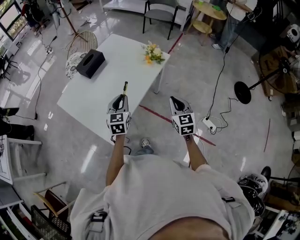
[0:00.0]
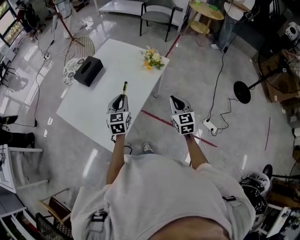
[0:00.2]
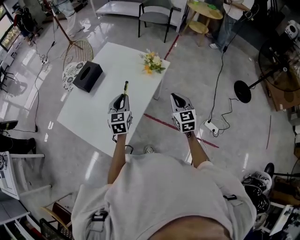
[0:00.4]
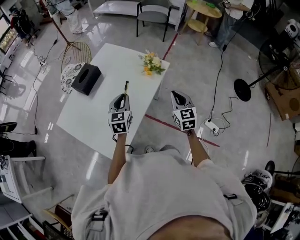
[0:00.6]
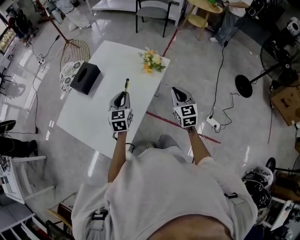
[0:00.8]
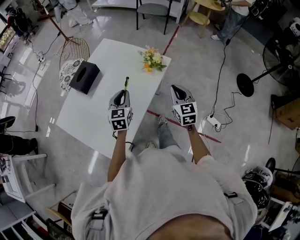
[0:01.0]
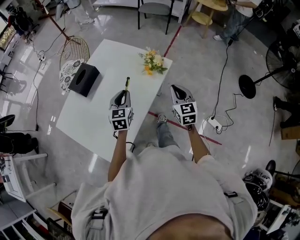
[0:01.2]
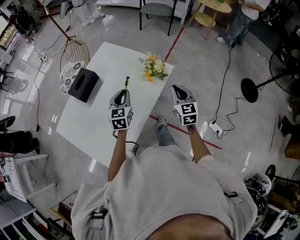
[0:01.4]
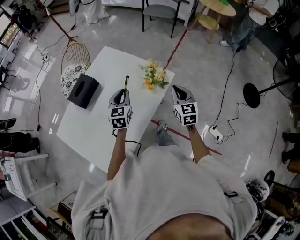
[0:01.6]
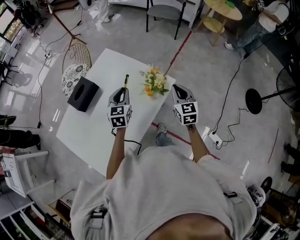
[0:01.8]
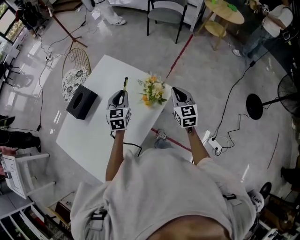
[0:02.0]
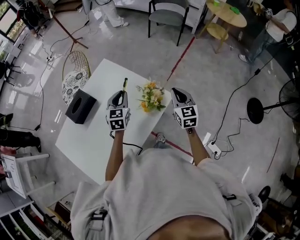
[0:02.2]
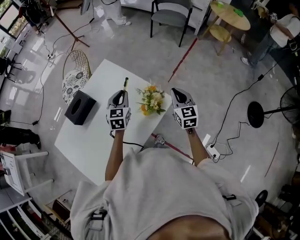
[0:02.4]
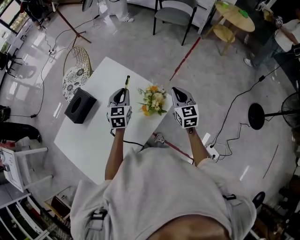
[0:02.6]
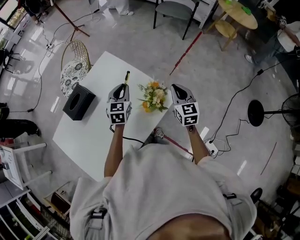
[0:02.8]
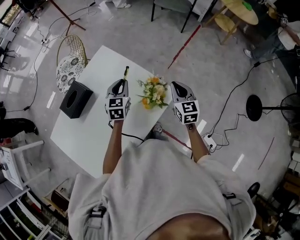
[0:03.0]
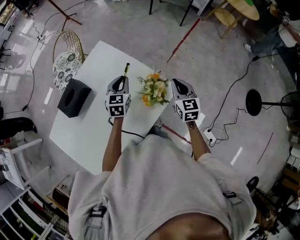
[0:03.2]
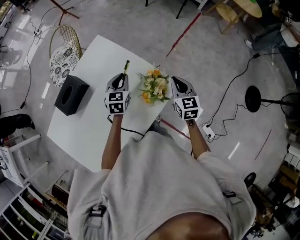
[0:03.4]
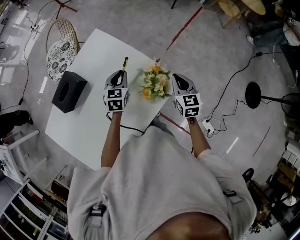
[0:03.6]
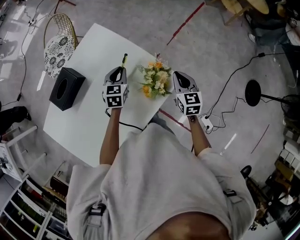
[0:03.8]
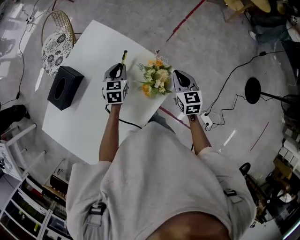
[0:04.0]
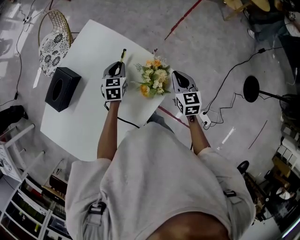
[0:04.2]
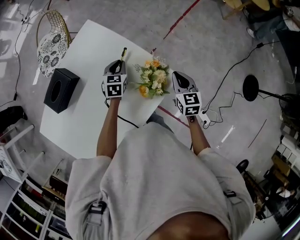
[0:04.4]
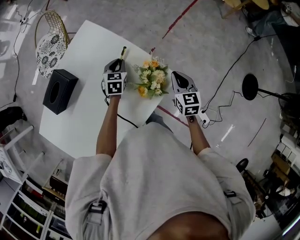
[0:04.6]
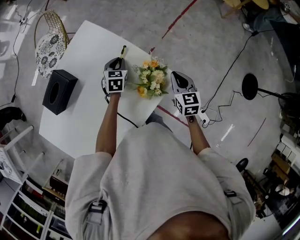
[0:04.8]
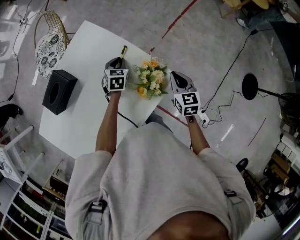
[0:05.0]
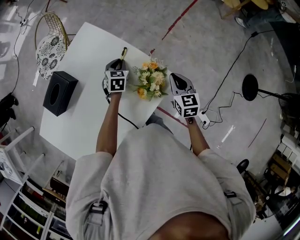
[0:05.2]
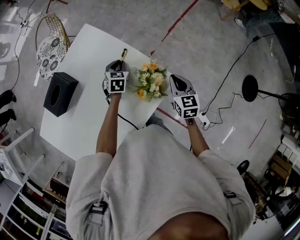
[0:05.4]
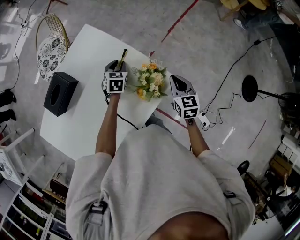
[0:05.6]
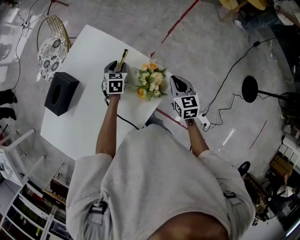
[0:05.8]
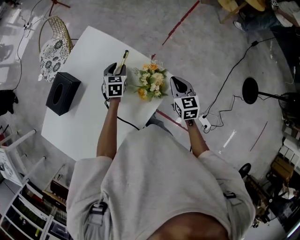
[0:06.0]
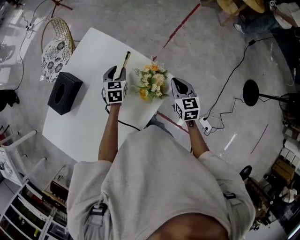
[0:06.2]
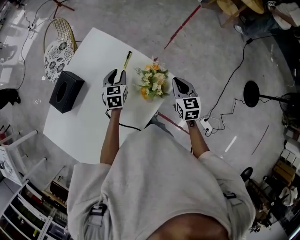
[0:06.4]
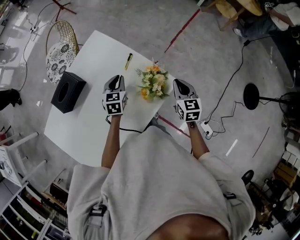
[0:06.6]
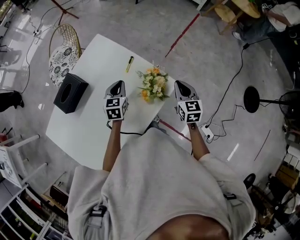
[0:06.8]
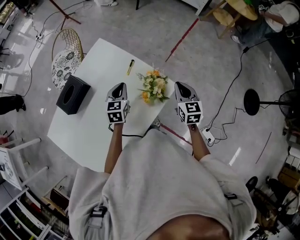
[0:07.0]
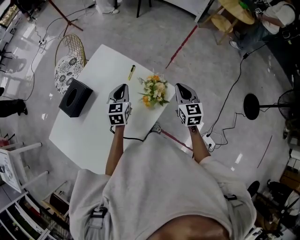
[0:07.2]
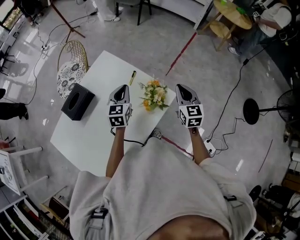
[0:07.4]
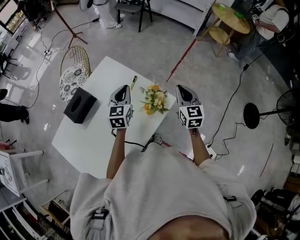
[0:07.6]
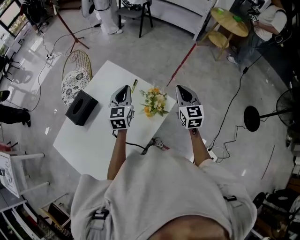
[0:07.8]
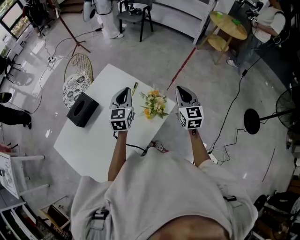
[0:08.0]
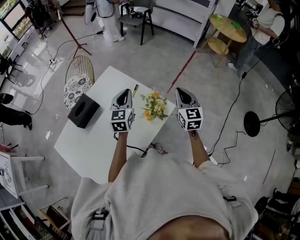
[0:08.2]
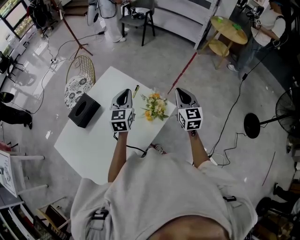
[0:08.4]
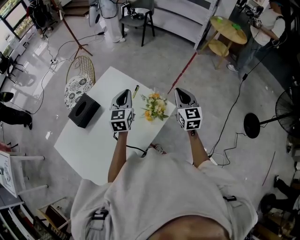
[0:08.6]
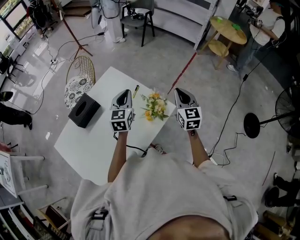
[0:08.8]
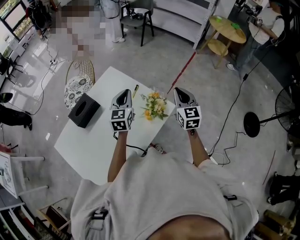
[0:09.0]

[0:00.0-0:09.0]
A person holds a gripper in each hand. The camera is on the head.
0:00.0 to 0:01.6: Both grippers move forward, roughly 25 cm.
0:01.6 to 0:03.0: The two grippers go roughly 15 cm forward.
0:03.0 to 0:04.4: The left gripper moves downward, about 15 cm, while the right gripper is displaced downward by some 10 cm.
0:04.4 to 0:06.0: There are only small adjustments of the grippers.
0:06.0 to 0:07.6: The right gripper travels upward by some 15 cm. Meanwhile the left gripper heads upward, covering approximately 20 cm, changes its angle by about 30 degrees, and closes up.
0:07.6 to 0:09.0: The grippers make only small movements.

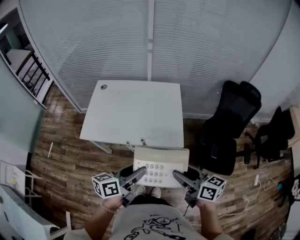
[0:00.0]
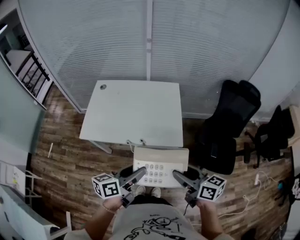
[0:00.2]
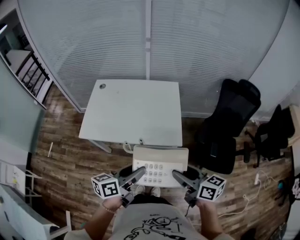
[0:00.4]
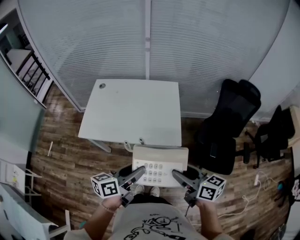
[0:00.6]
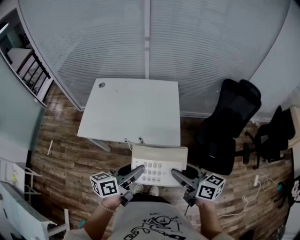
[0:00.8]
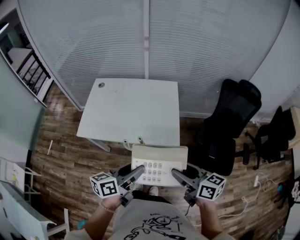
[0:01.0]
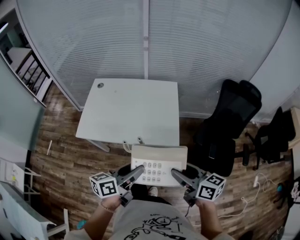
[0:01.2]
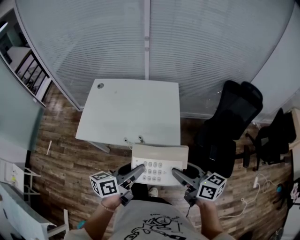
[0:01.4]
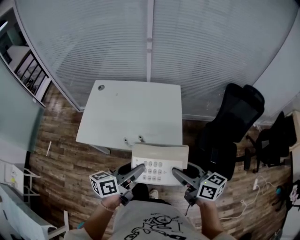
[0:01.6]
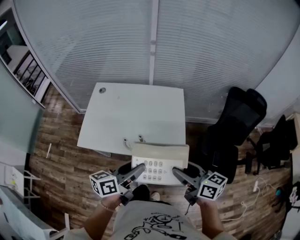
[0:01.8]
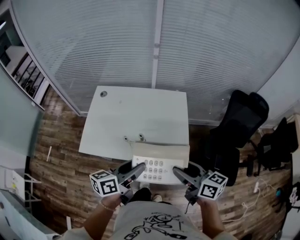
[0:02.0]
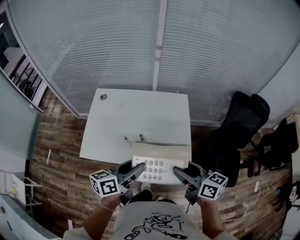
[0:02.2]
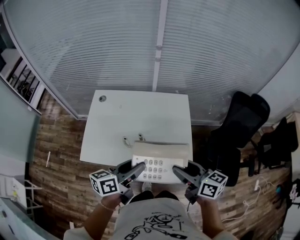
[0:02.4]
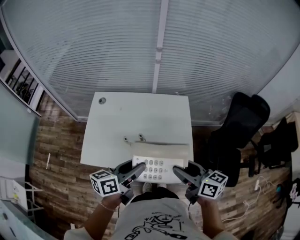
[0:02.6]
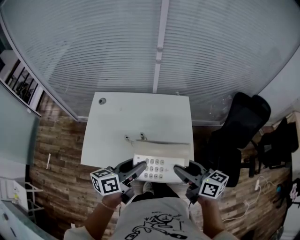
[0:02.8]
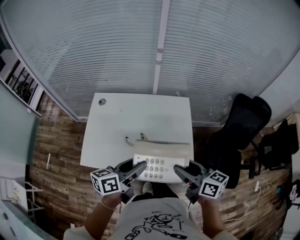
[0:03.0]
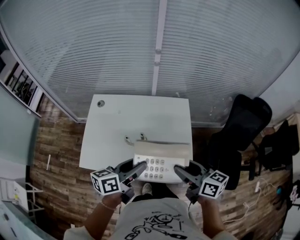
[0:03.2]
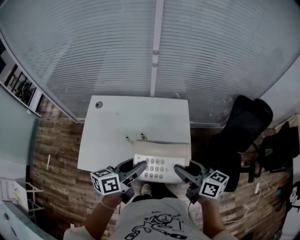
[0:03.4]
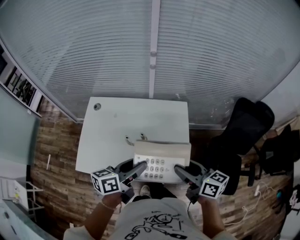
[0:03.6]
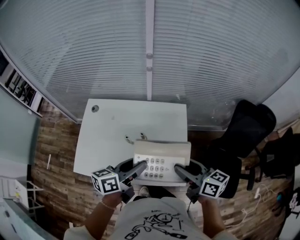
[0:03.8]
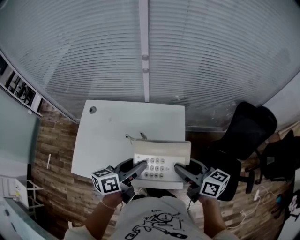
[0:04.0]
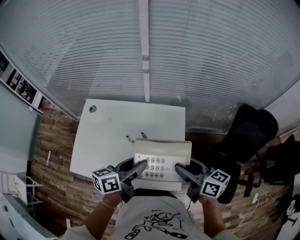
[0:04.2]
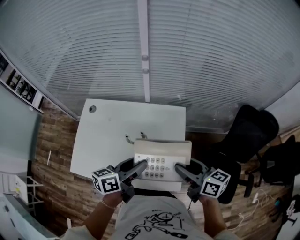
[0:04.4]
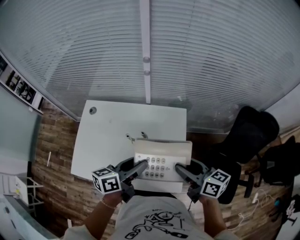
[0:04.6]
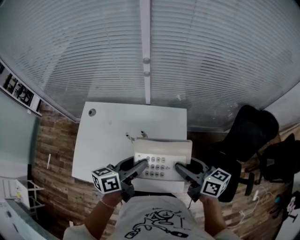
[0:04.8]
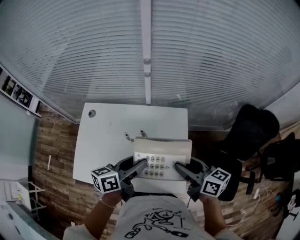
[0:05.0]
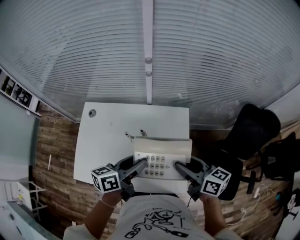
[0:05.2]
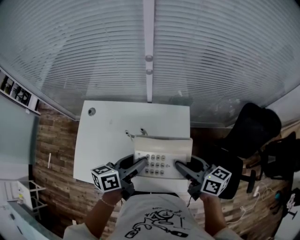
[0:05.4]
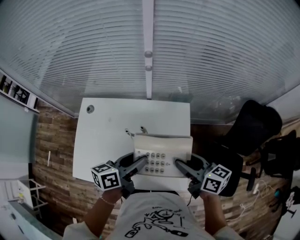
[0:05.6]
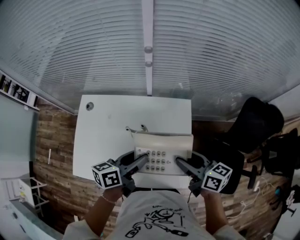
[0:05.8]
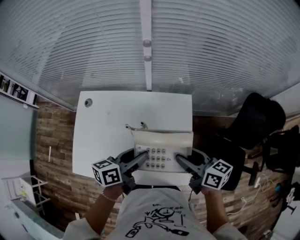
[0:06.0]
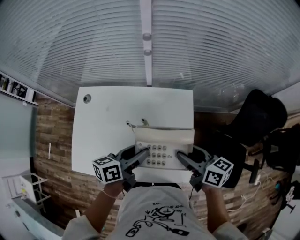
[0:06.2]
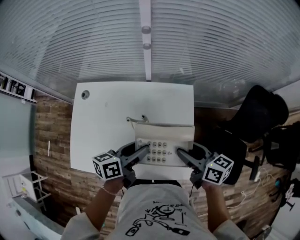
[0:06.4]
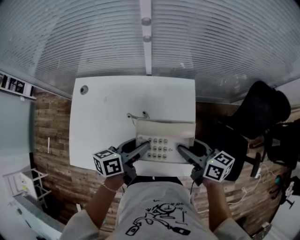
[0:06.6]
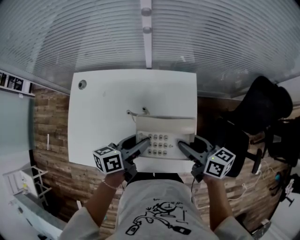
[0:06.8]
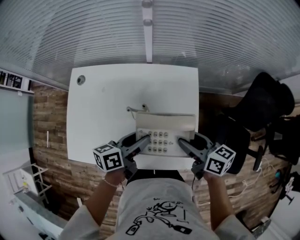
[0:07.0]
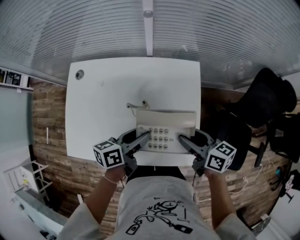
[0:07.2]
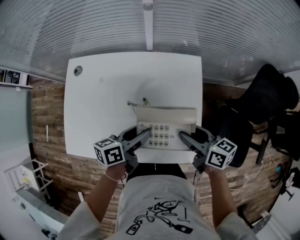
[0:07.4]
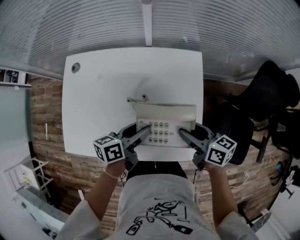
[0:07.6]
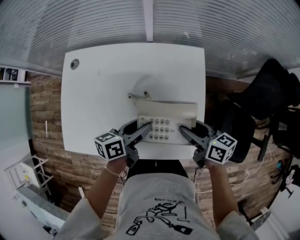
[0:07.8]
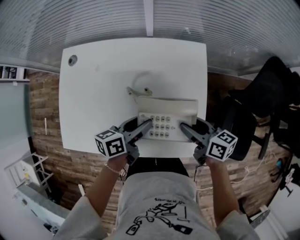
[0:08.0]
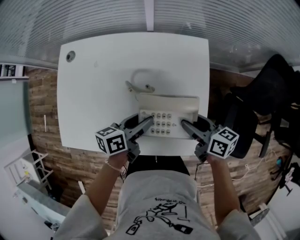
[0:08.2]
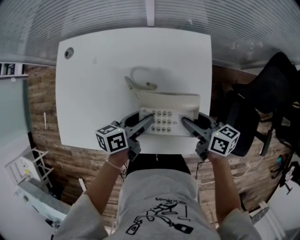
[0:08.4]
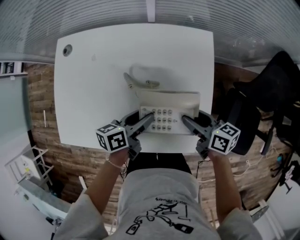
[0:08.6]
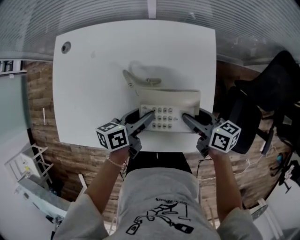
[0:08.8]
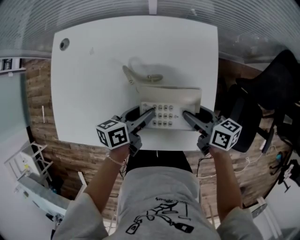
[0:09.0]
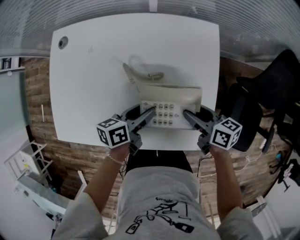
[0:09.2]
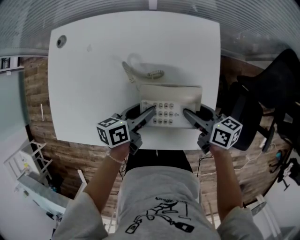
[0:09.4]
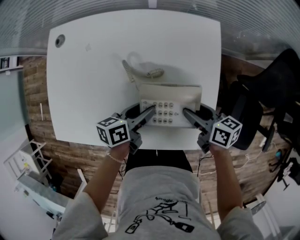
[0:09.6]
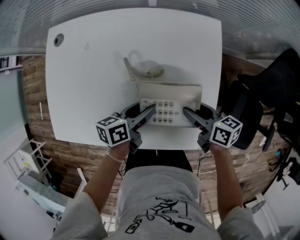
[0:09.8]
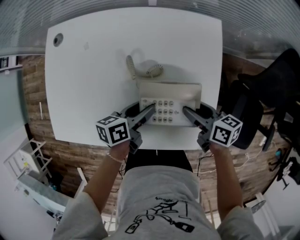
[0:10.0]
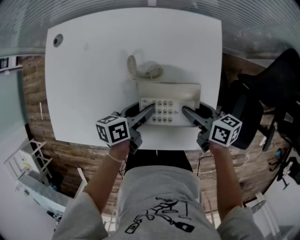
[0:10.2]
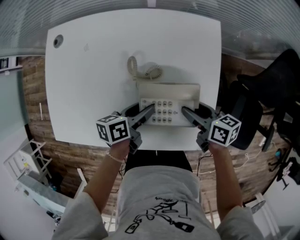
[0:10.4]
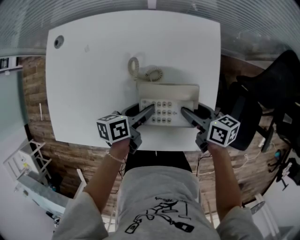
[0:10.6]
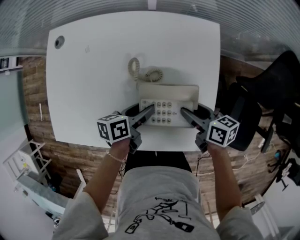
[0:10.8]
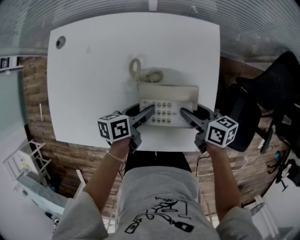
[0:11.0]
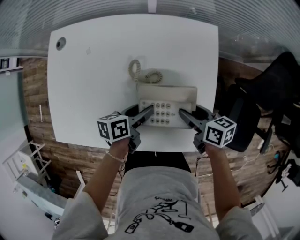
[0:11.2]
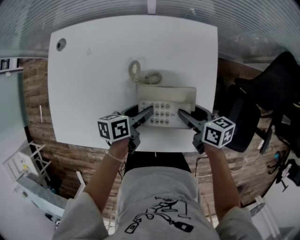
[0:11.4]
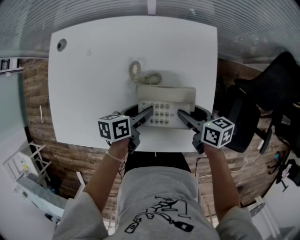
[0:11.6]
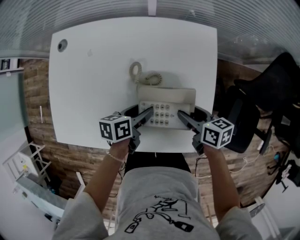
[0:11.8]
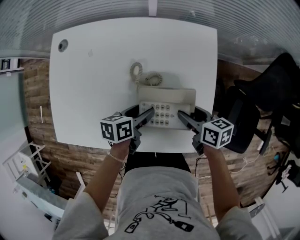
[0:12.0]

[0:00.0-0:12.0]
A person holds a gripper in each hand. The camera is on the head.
0:00.0 to 0:01.6: Both grippers move forward, some 5 cm.
0:01.6 to 0:03.0: Both grippers move forward and to the left, about 15 cm.
0:03.0 to 0:04.4: The two grippers go approximately 15 cm forward and to the right.
0:04.4 to 0:06.0: The right gripper shifts by about 5 cm; the left gripper shifts approximately 5 cm forward.
0:06.0 to 0:07.6: The grippers both shift downward by approximately 10 cm.
0:07.6 to 0:09.0: The grippers both shift downward by roughly 10 cm.
0:09.0 to 0:12.0: The grippers move only a little.

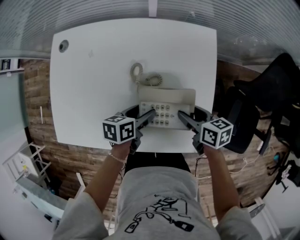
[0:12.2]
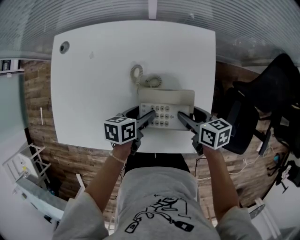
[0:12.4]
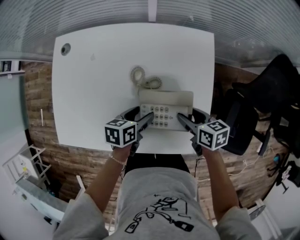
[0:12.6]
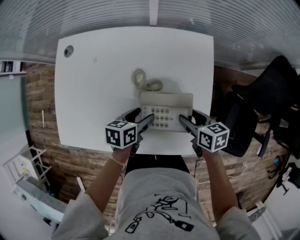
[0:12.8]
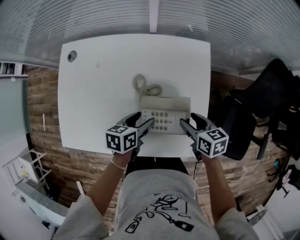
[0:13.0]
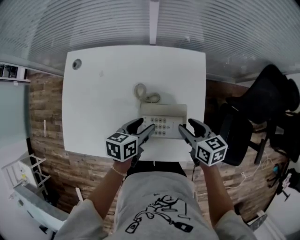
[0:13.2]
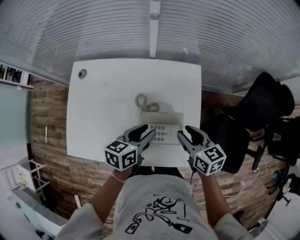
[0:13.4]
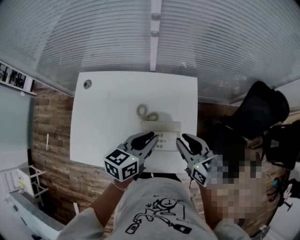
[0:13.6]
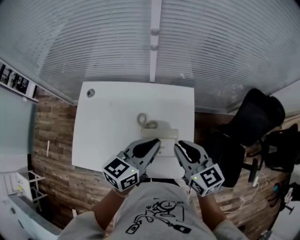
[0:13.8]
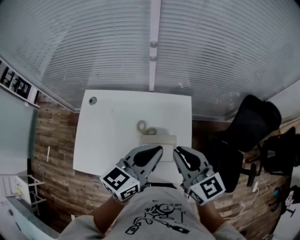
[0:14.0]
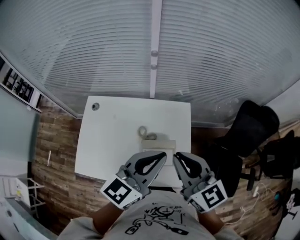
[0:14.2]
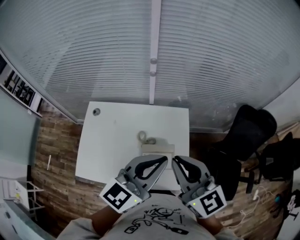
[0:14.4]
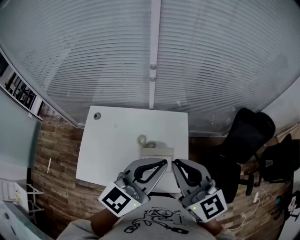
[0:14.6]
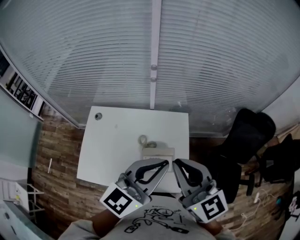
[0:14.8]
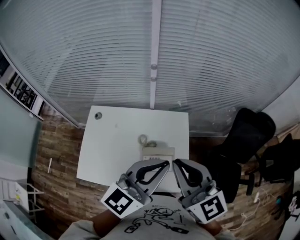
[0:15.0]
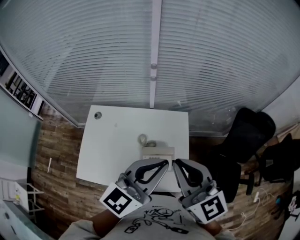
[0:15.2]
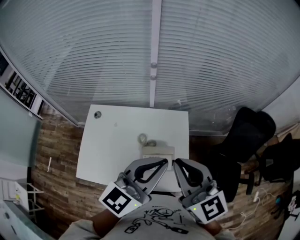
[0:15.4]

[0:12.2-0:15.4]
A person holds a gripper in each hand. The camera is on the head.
0:12.2 to 0:13.8: The two grippers go approximately 30 cm upward. The right gripper swivels some 40 degrees, and closes; the left gripper turns by roughly 40 degrees, and closes its fingers.
0:13.8 to 0:15.4: The grippers both shift upward by approximately 20 cm. The right gripper turns by approximately 20 degrees; the left gripper turns by approximately 30 degrees.
